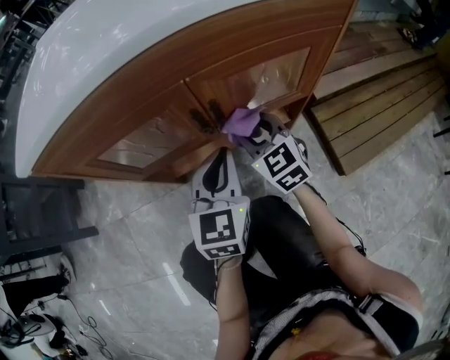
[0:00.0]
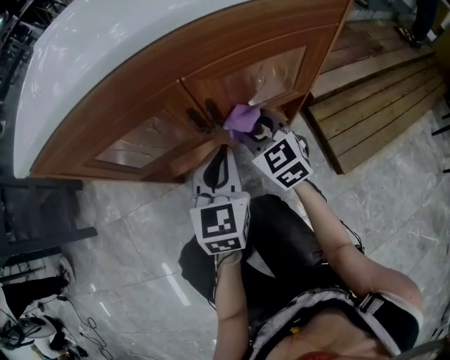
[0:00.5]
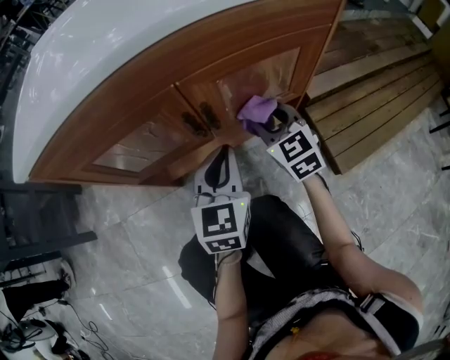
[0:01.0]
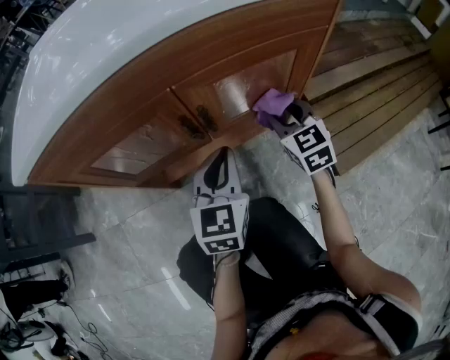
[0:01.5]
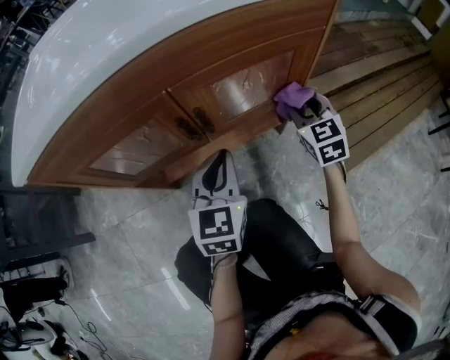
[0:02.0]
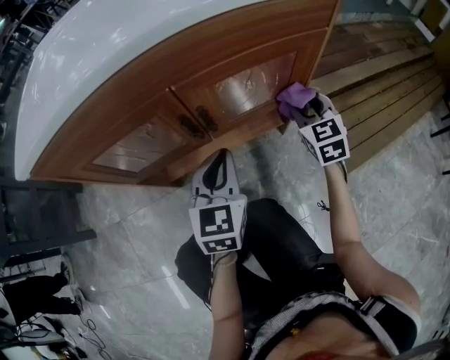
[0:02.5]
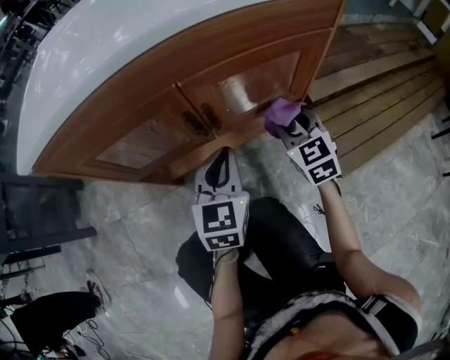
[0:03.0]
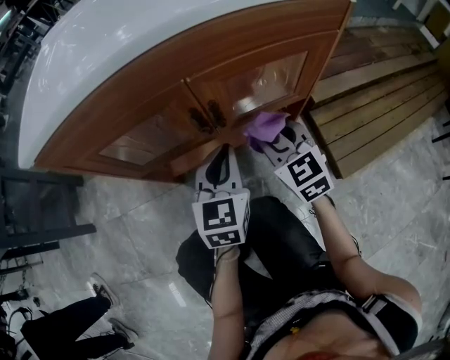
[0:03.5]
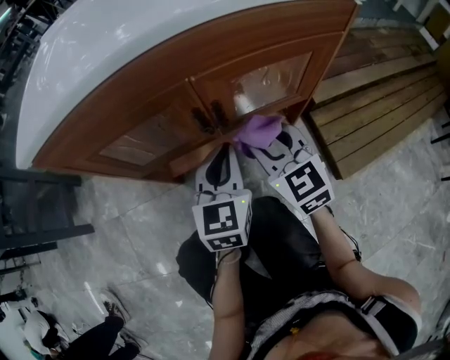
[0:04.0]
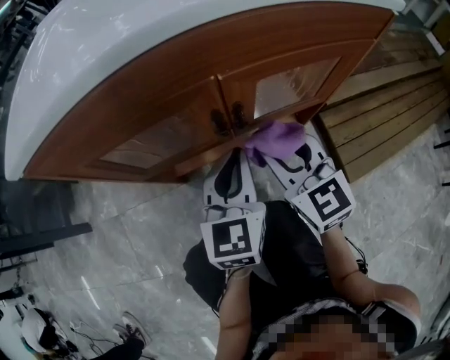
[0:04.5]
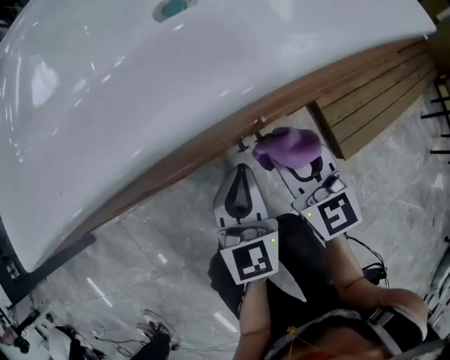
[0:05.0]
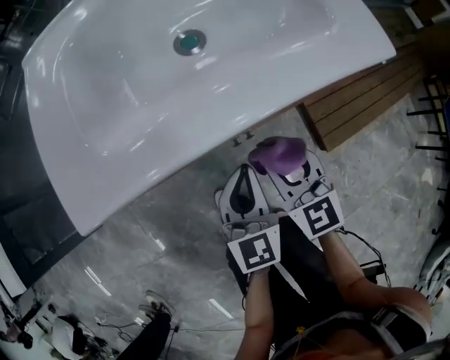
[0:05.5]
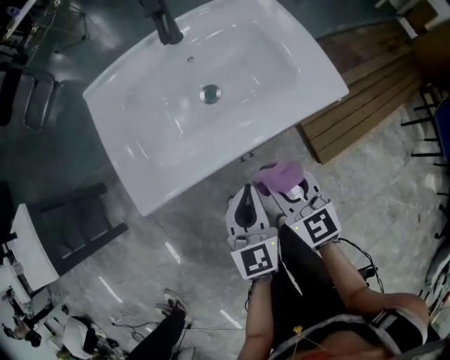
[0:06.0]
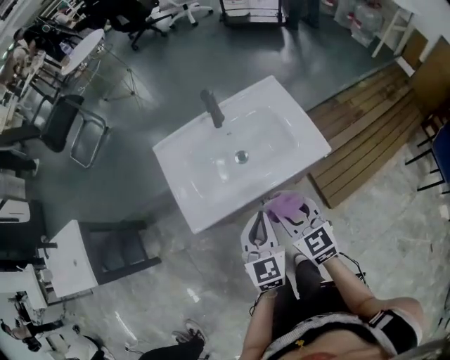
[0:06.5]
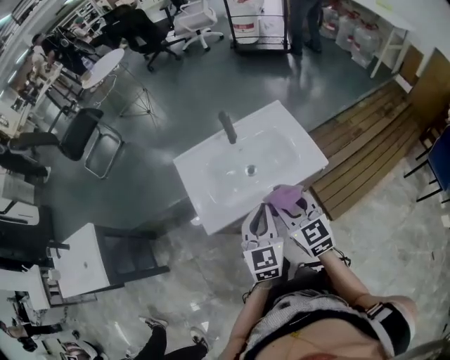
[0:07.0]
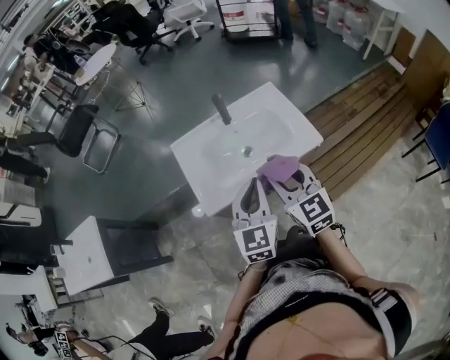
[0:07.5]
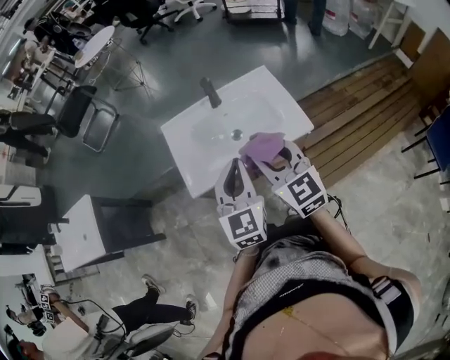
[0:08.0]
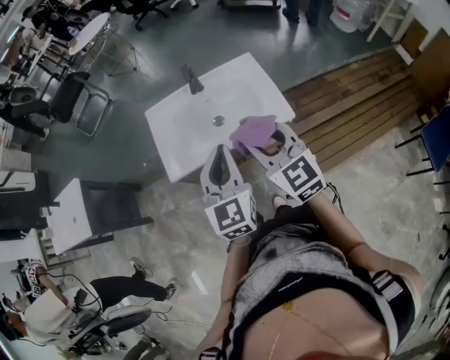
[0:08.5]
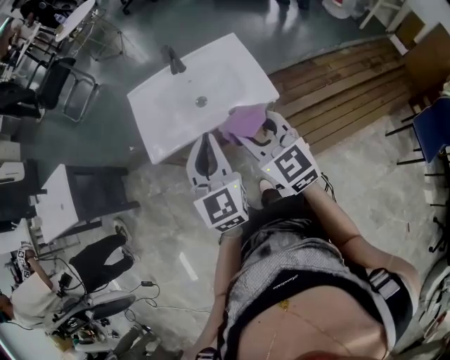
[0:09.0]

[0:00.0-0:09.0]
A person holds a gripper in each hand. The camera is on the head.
0:00.0 to 0:02.0: The right gripper heads to the right, covering roughly 20 cm.
0:02.0 to 0:04.5: The right gripper is displaced to the left and backward by approximately 20 cm, and turns by roughly 20 degrees.
0:04.5 to 0:07.0: The grippers both shift upward by roughly 50 cm.
0:07.0 to 0:09.0: The right gripper is displaced to the right, upward and backward by about 15 cm. Meanwhile the left gripper heads upward, to the right and backward, covering about 15 cm.

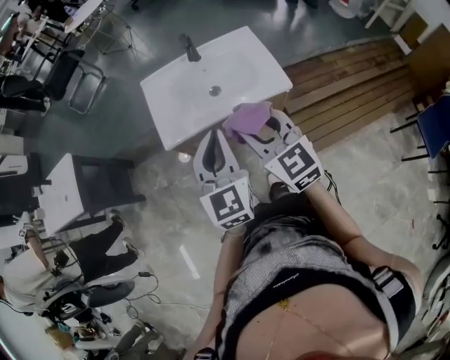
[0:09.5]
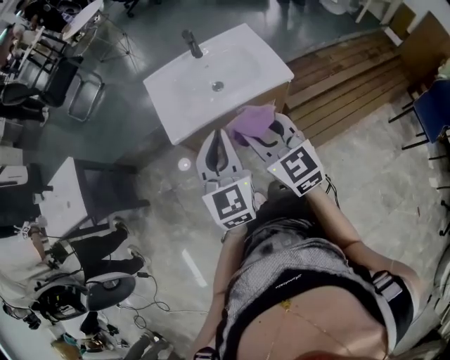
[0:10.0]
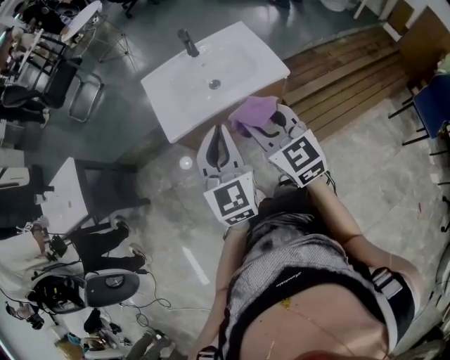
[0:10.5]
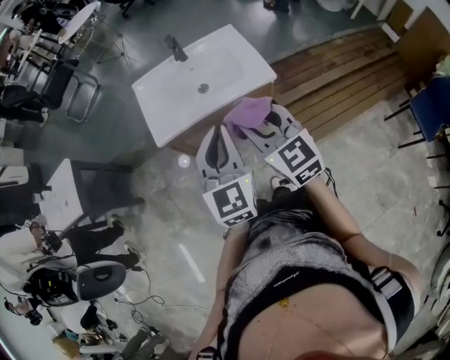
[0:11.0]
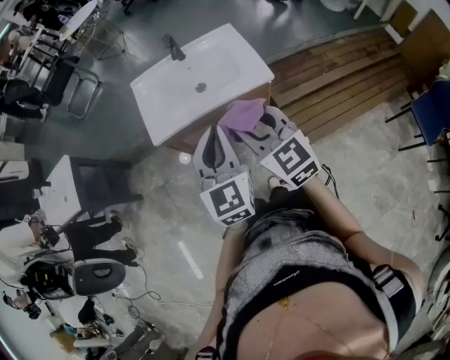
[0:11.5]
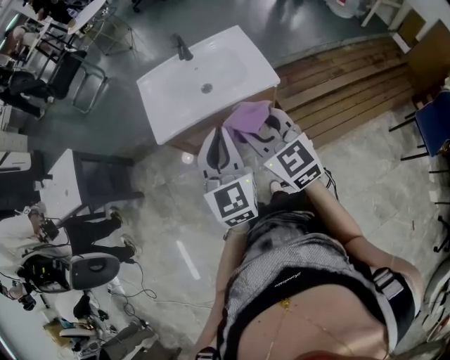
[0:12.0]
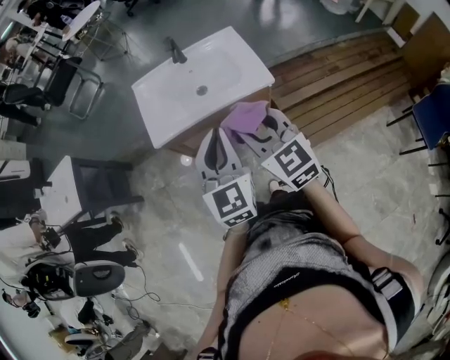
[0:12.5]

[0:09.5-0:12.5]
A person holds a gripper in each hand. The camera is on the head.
0:09.5 to 0:11.0: The right gripper ends up some 5 cm from where it was. Meanwhile the left gripper travels backward by approximately 5 cm.
0:11.0 to 0:12.5: The grippers make only small movements.

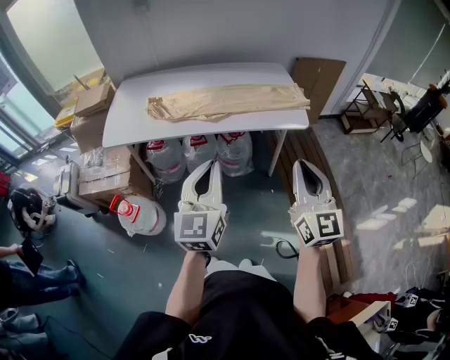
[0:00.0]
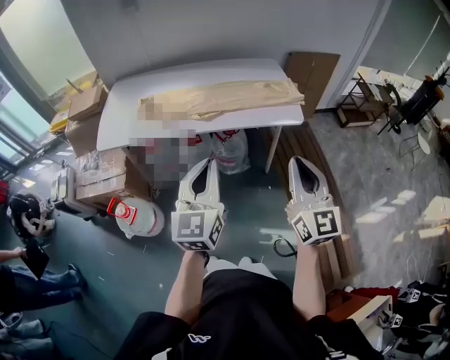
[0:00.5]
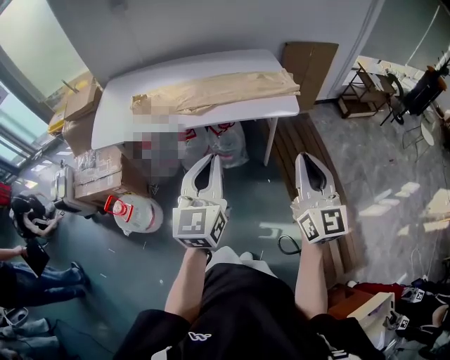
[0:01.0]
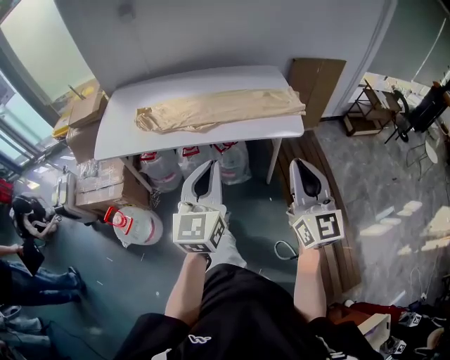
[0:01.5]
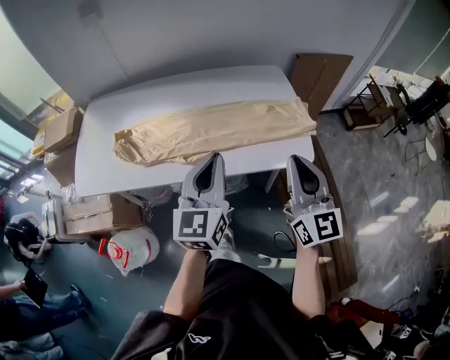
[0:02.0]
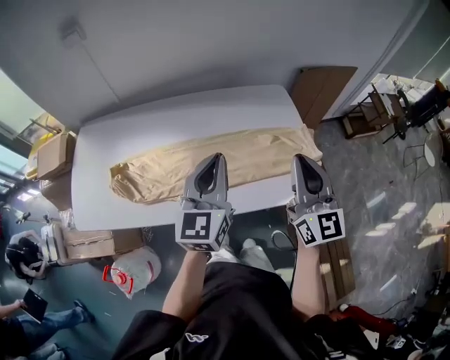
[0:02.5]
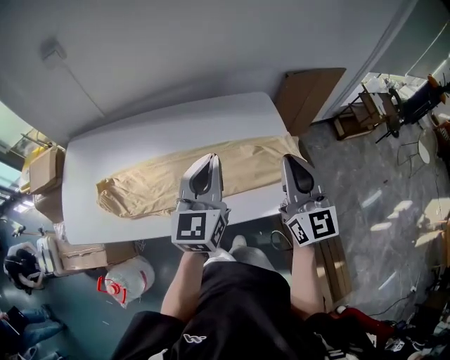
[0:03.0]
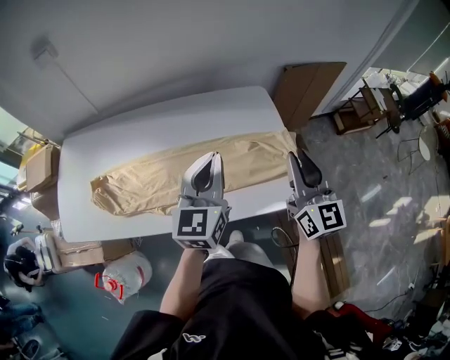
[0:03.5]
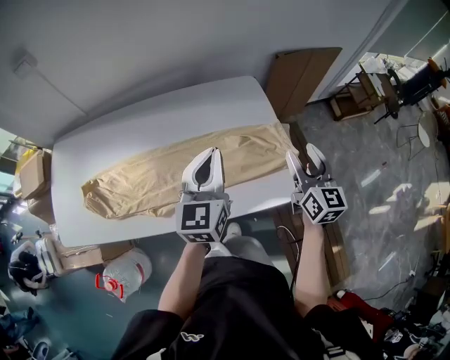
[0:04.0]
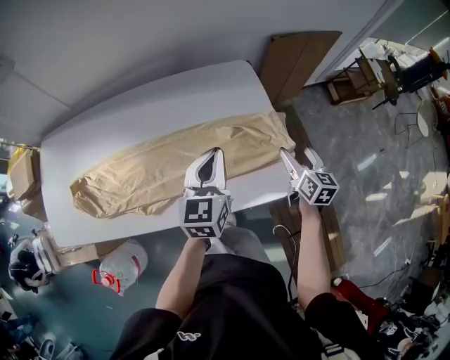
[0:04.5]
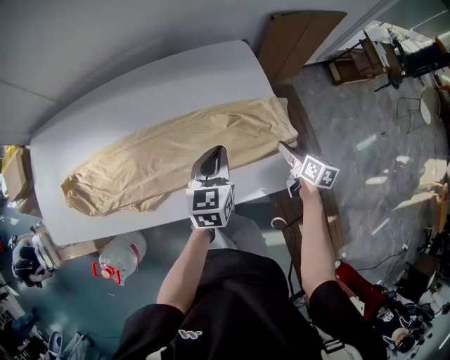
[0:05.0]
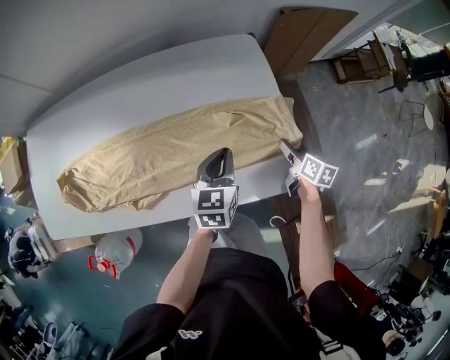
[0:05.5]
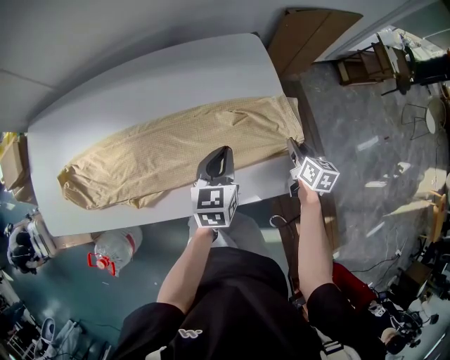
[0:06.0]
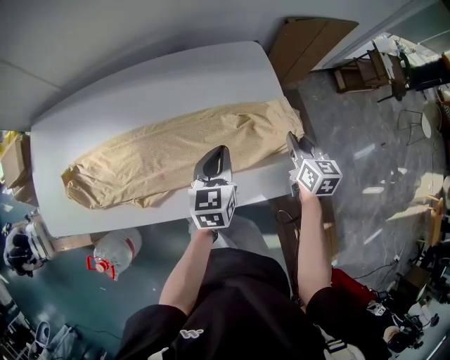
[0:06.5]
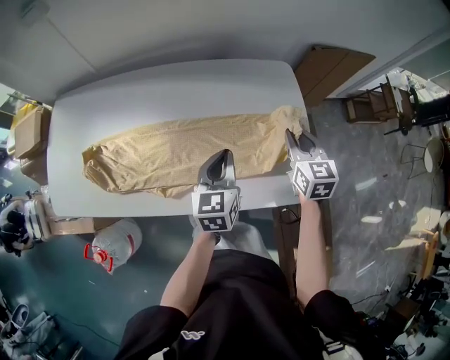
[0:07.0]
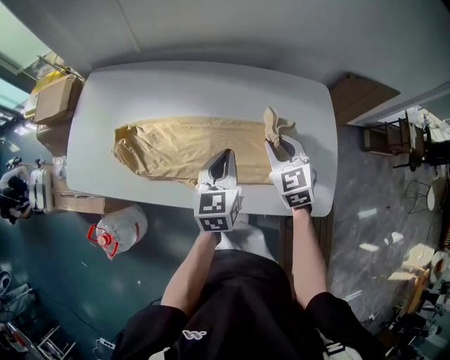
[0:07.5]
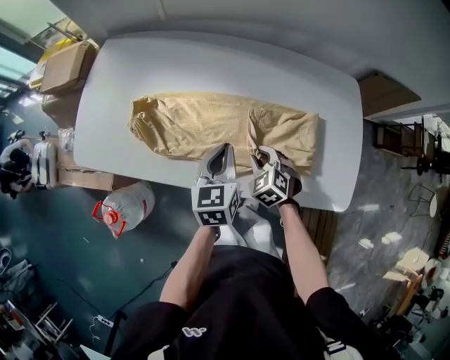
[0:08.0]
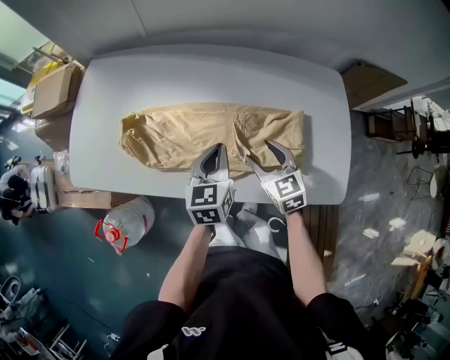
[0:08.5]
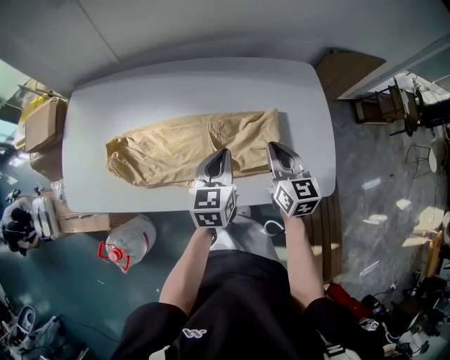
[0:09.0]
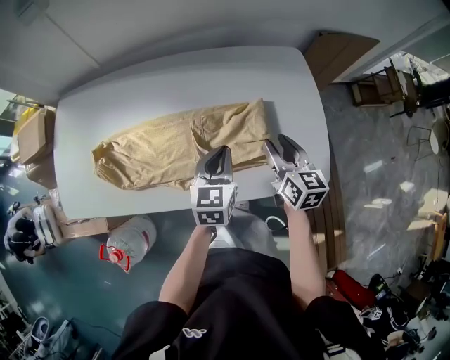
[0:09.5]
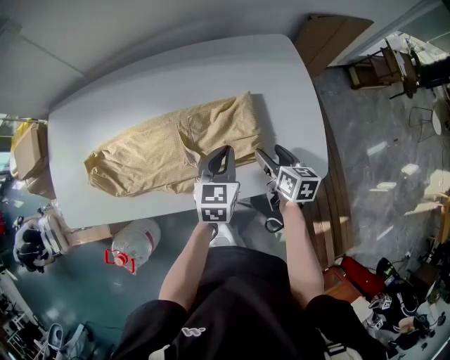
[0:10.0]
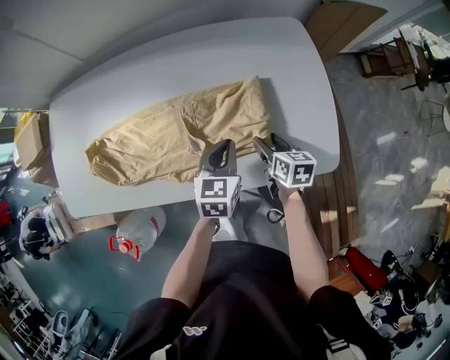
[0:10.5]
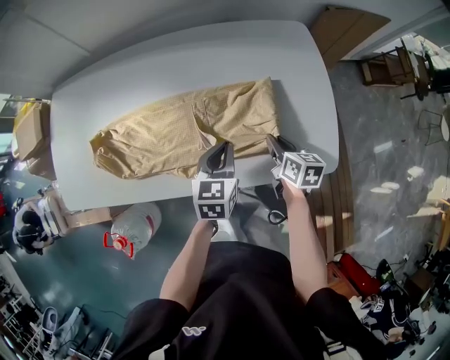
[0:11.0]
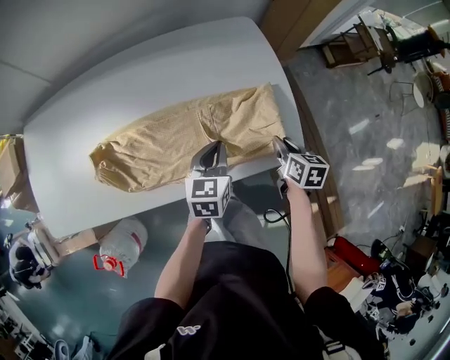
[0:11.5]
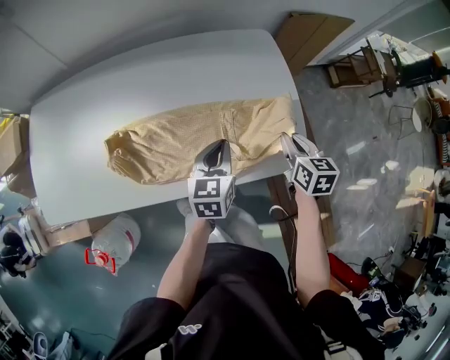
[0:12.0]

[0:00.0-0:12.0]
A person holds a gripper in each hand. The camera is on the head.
0:00.0 to 0:02.0: Both grippers travel together forward, roughly 30 cm.
0:02.0 to 0:04.0: Both grippers move forward and to the right, some 30 cm. The right gripper rotates roughly 20 degrees, and opens.
0:04.0 to 0:06.0: The two grippers go about 20 cm downward. The left gripper changes its angle by approximately 20 degrees, while the right gripper changes its angle by approximately 30 degrees, and closes up.
0:06.0 to 0:08.0: The right gripper moves about 15 cm upward and comes back, and rolls counterclockwise, seen from behind, by some 80 degrees. Meanwhile the left gripper shifts by about 35 cm, and turns by about 30 degrees.
0:08.0 to 0:10.0: Both grippers travel together to the right, approximately 20 cm. The left gripper turns by approximately 30 degrees. The right gripper twists some 80 degrees clockwise, seen from behind, and opens up.
0:10.0 to 0:12.0: The right gripper heads to the right and upward, covering about 10 cm, and closes up; the left gripper travels to the right and back again, roughly 5 cm each way.

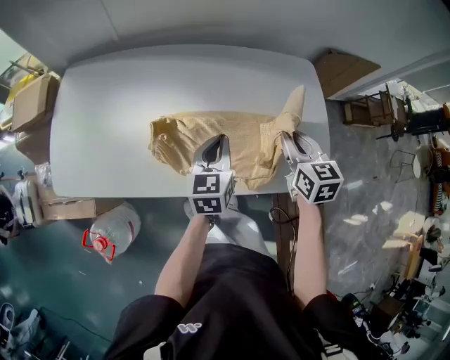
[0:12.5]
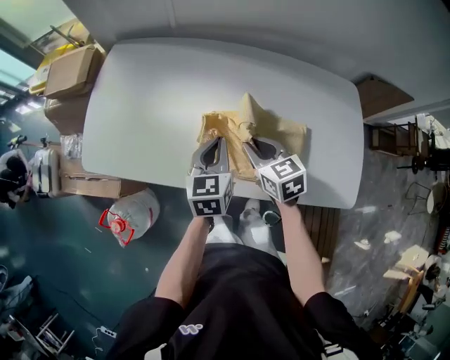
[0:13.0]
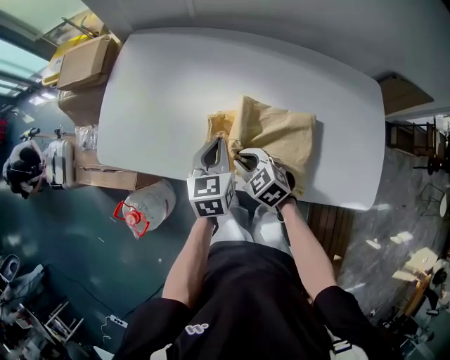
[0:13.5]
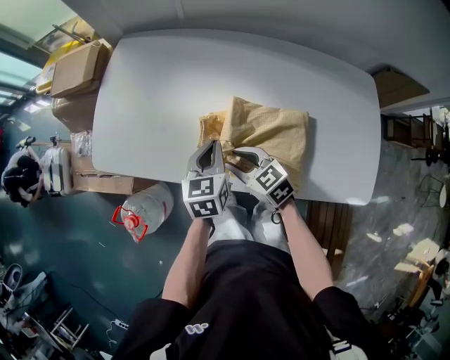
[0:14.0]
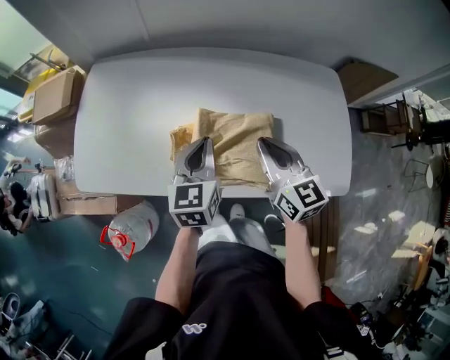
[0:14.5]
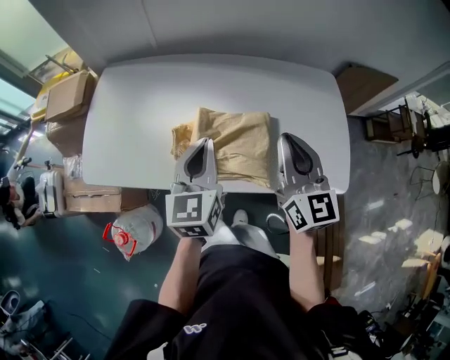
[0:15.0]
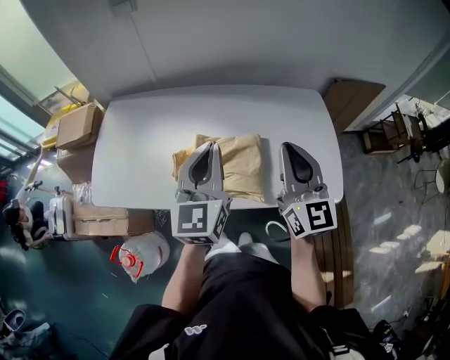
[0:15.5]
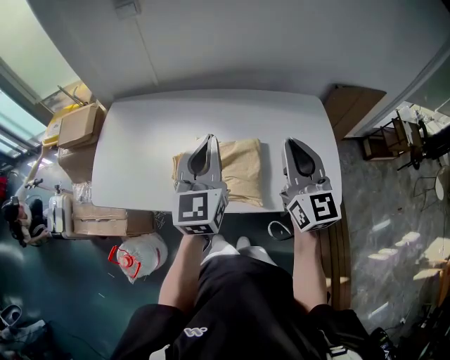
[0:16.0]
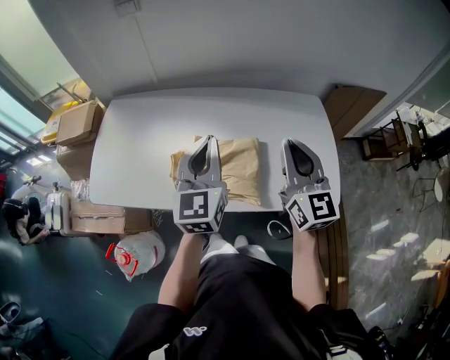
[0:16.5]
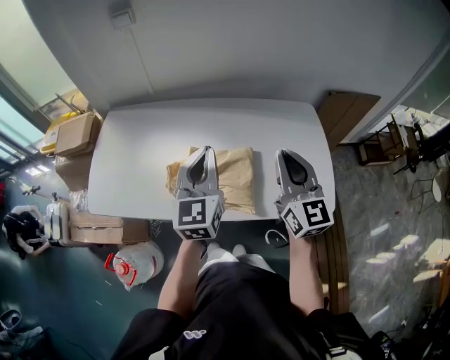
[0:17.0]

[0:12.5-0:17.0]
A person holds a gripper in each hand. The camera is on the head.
0:12.5 to 0:14.5: The right gripper reaches roughly 15 cm downward, then returns, and changes its angle by some 20 degrees.
0:14.5 to 0:17.0: The right gripper shifts some 15 cm upward, to the right and backward, and swivels roughly 20 degrees; the left gripper is displaced upward and to the right by approximately 15 cm, and changes its angle by about 20 degrees.
